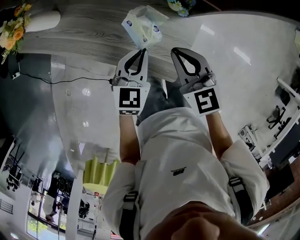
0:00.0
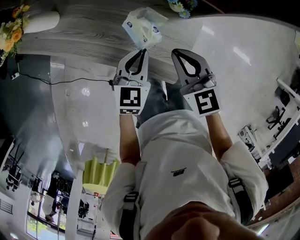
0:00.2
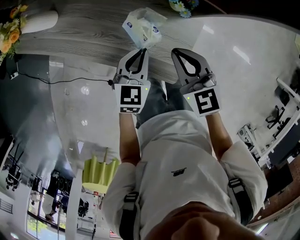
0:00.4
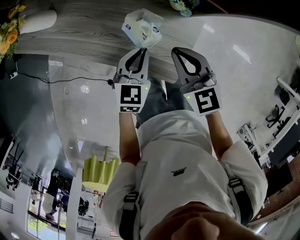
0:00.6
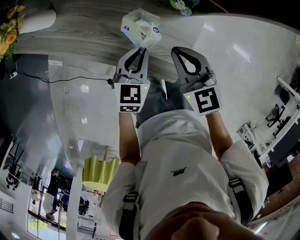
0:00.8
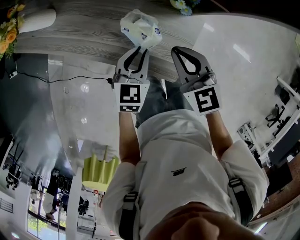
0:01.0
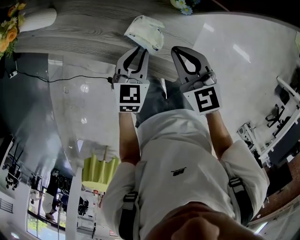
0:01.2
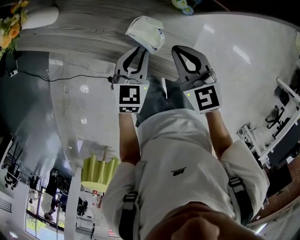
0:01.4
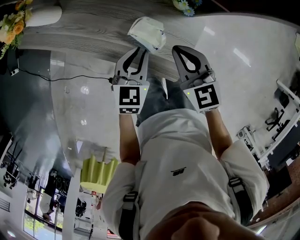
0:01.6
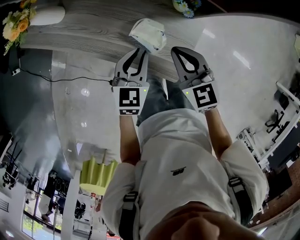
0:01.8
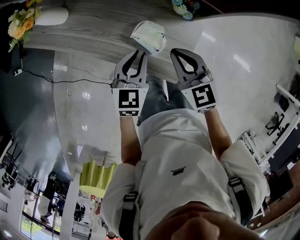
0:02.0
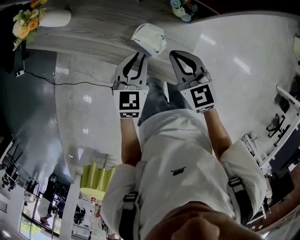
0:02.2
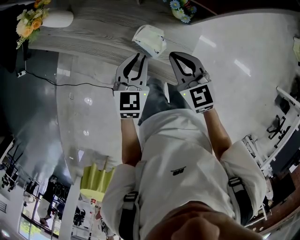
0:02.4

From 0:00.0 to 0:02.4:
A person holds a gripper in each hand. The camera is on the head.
From 0:00.0 to 0:01.2: There are only small adjustments of the grippers.
From 0:01.2 to 0:02.4: The left gripper goes roughly 5 cm upward.

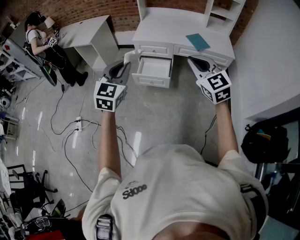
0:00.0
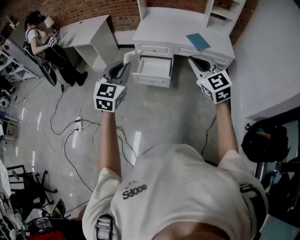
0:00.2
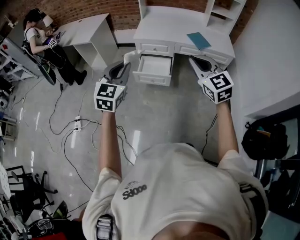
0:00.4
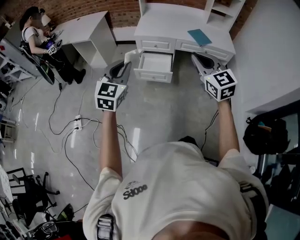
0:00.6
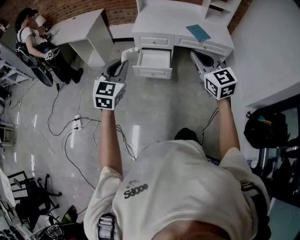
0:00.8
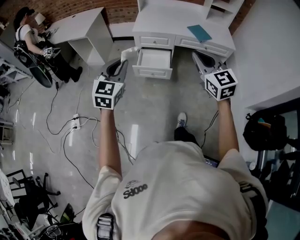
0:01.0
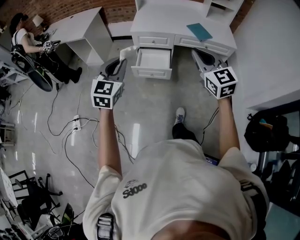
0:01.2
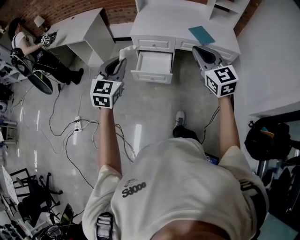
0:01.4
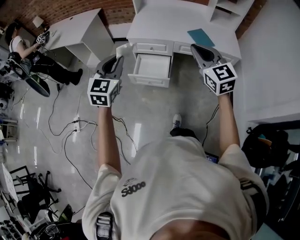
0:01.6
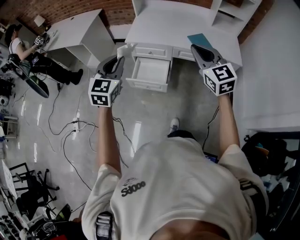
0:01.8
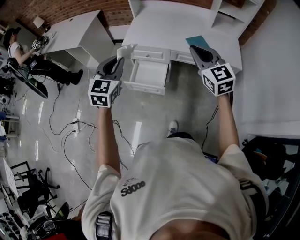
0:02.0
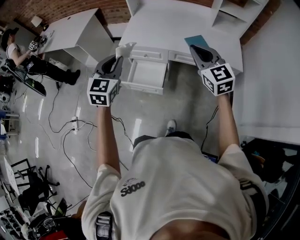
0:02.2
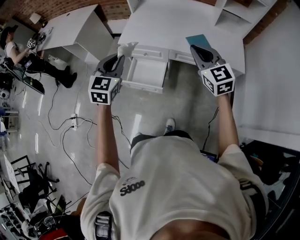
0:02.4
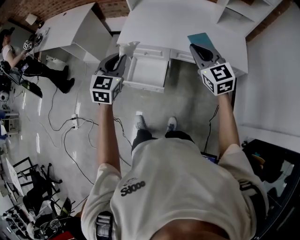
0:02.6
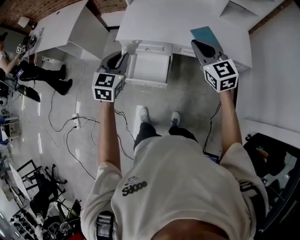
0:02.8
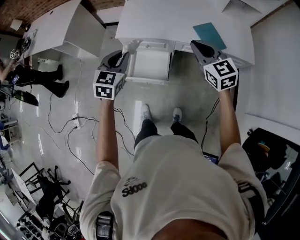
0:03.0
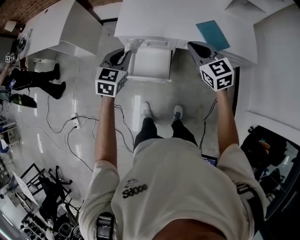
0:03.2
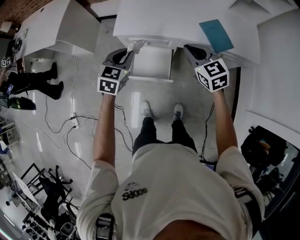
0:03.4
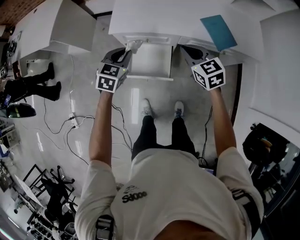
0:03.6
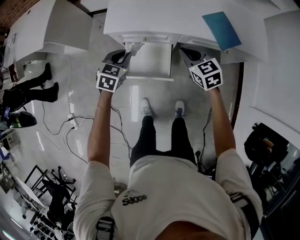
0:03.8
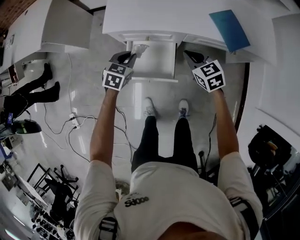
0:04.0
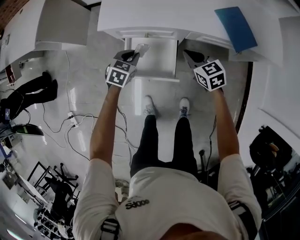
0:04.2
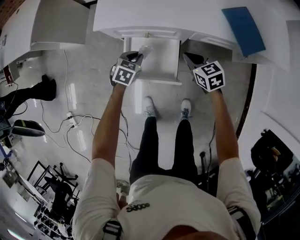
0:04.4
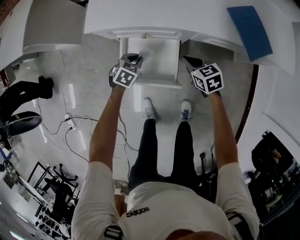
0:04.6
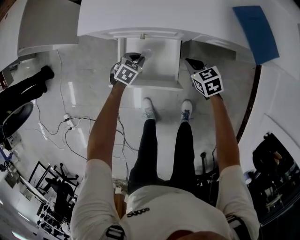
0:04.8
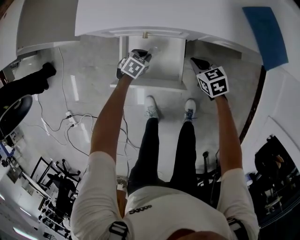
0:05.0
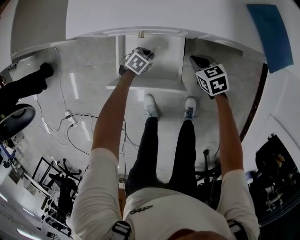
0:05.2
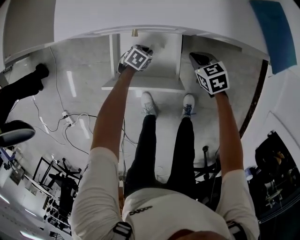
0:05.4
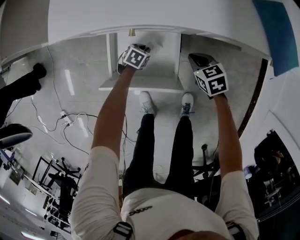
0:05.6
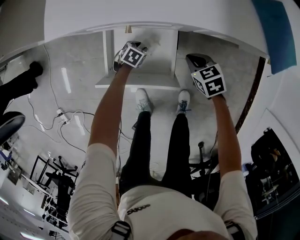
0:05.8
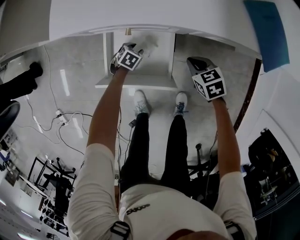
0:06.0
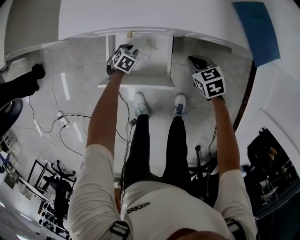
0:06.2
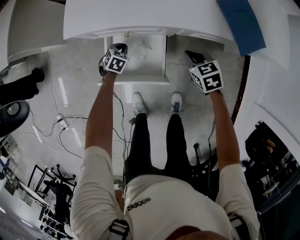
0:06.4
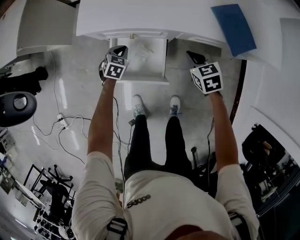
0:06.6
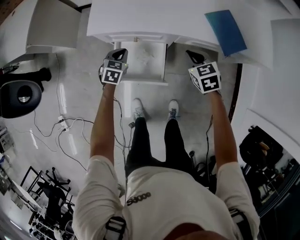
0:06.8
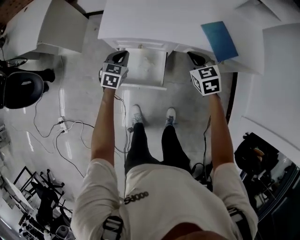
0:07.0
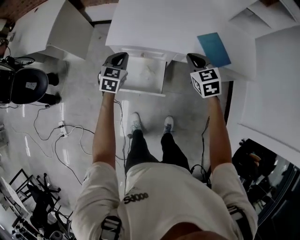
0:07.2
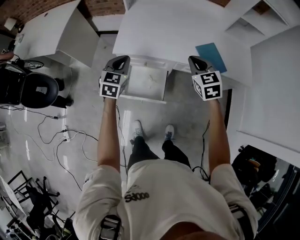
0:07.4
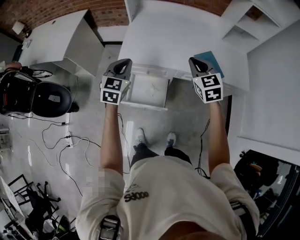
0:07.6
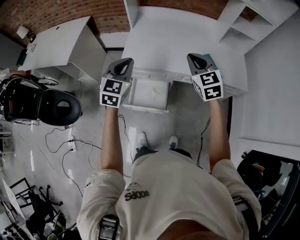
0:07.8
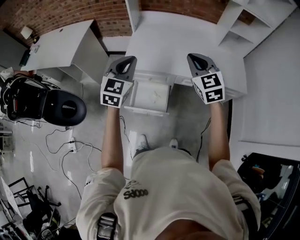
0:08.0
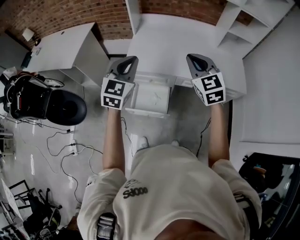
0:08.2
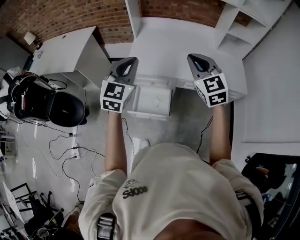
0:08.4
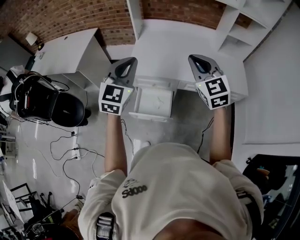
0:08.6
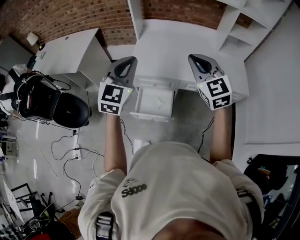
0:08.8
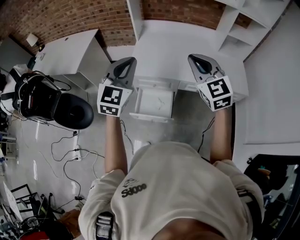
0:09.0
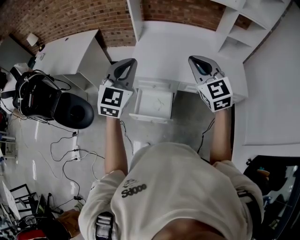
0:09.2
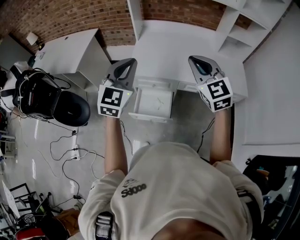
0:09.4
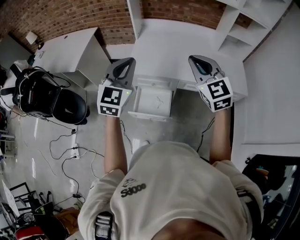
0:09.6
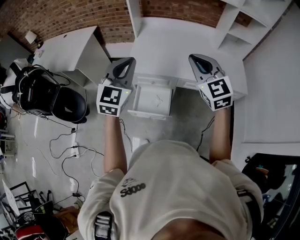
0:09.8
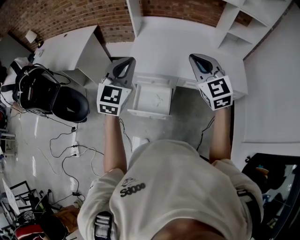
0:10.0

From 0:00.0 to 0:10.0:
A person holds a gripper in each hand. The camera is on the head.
From 0:00.0 to 0:01.4: The two grippers go some 10 cm forward.
From 0:01.4 to 0:02.8: The right gripper heads forward, covering approximately 30 cm; the left gripper travels forward and to the right by about 30 cm.
From 0:02.8 to 0:04.2: The grippers both shift downward by approximately 40 cm. The right gripper swivels approximately 30 degrees; the left gripper swivels roughly 30 degrees.
From 0:04.2 to 0:05.8: Both grippers travel together downward, approximately 30 cm. The left gripper changes its angle by approximately 20 degrees, and opens; the right gripper turns by approximately 20 degrees.
From 0:05.8 to 0:07.2: The grippers both shift upward by some 50 cm. The right gripper swivels approximately 30 degrees. The left gripper tilts its fingers roughly 40 degrees upward, and closes.
From 0:07.2 to 0:08.6: Both grippers move upward, roughly 30 cm. The left gripper rotates about 30 degrees. The right gripper changes its angle by approximately 30 degrees.
From 0:08.6 to 0:10.0: There are only small adjustments of the grippers.

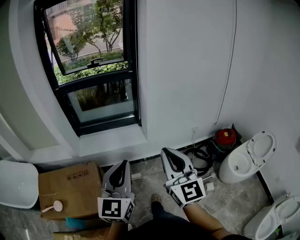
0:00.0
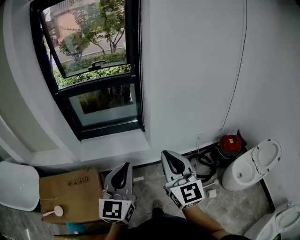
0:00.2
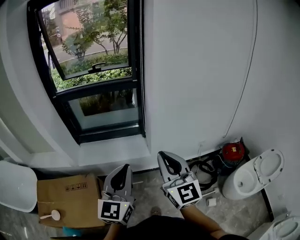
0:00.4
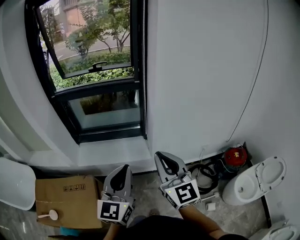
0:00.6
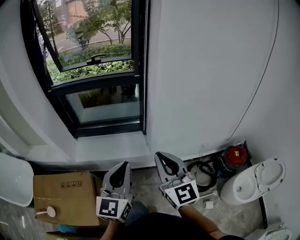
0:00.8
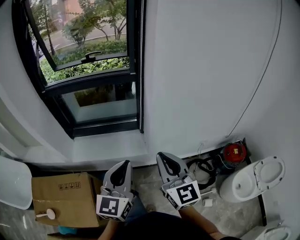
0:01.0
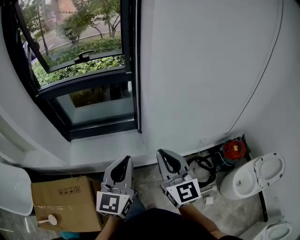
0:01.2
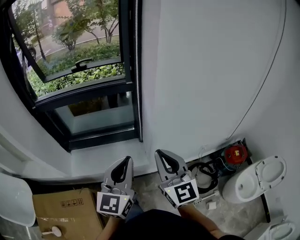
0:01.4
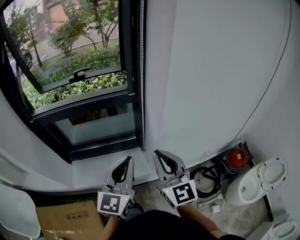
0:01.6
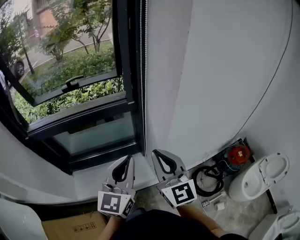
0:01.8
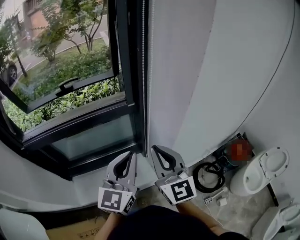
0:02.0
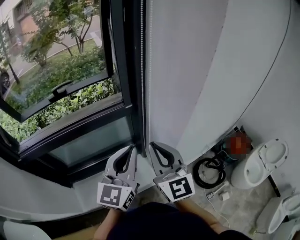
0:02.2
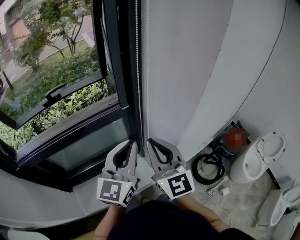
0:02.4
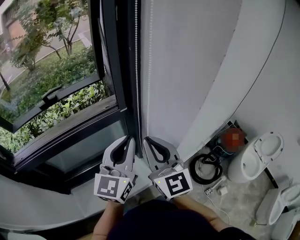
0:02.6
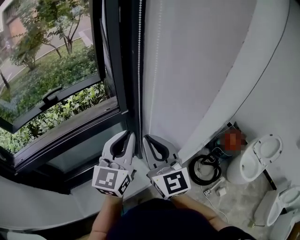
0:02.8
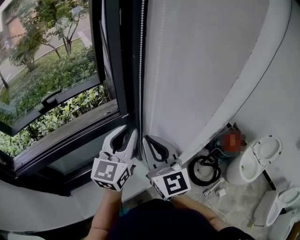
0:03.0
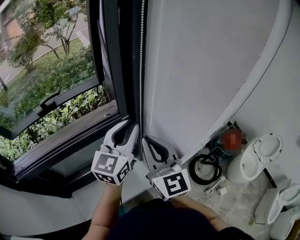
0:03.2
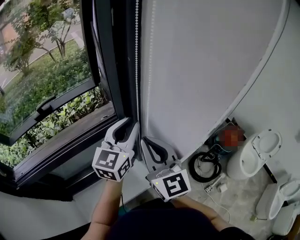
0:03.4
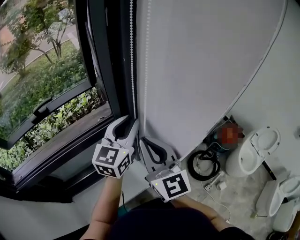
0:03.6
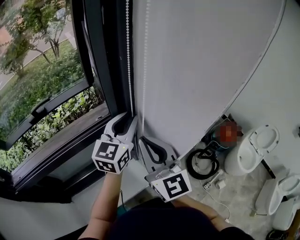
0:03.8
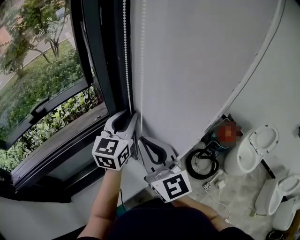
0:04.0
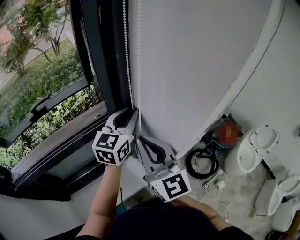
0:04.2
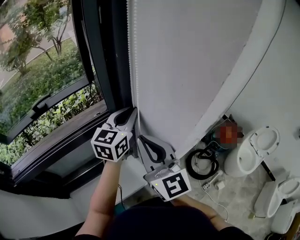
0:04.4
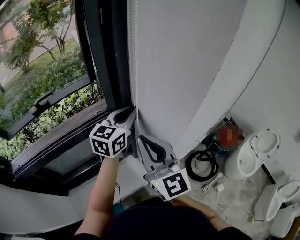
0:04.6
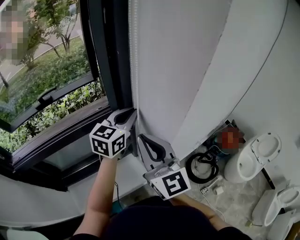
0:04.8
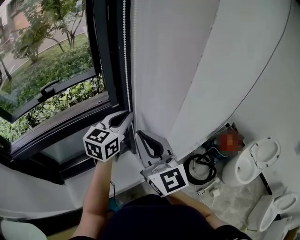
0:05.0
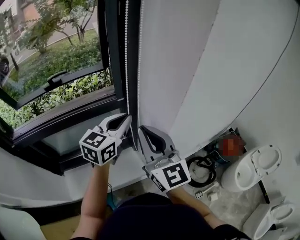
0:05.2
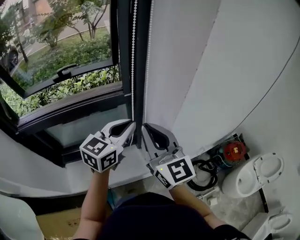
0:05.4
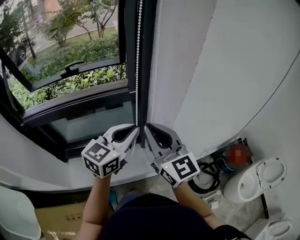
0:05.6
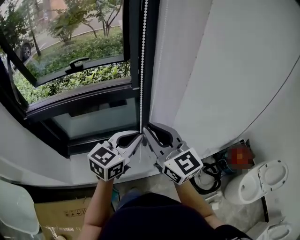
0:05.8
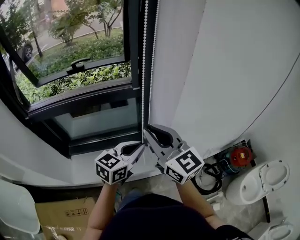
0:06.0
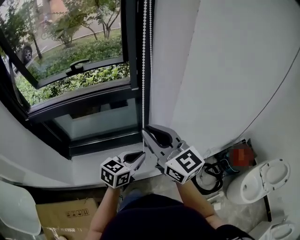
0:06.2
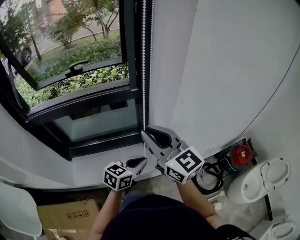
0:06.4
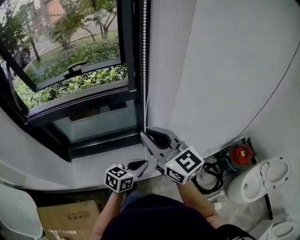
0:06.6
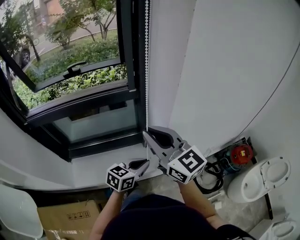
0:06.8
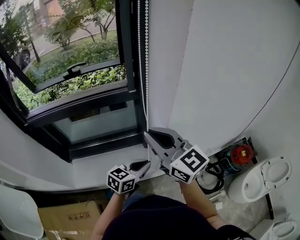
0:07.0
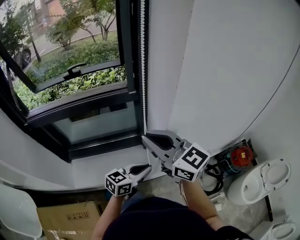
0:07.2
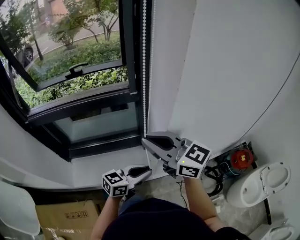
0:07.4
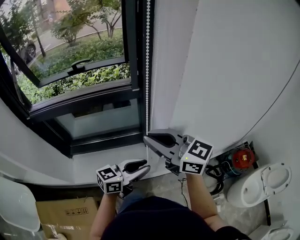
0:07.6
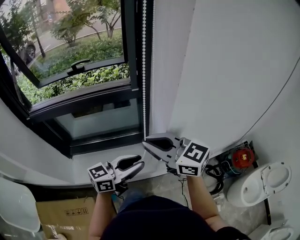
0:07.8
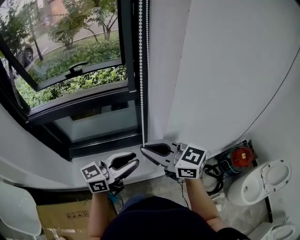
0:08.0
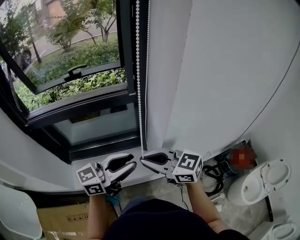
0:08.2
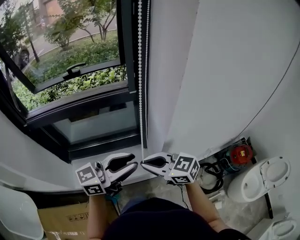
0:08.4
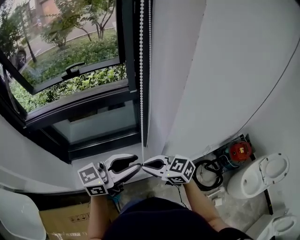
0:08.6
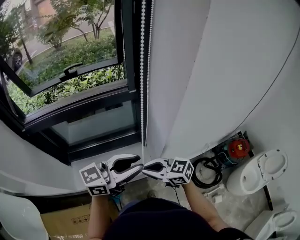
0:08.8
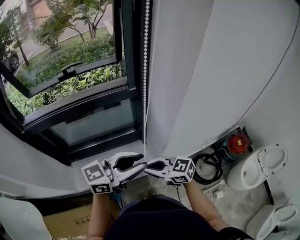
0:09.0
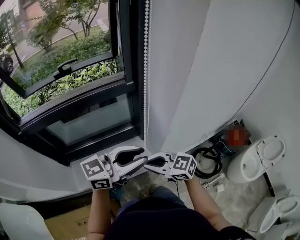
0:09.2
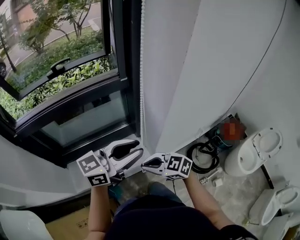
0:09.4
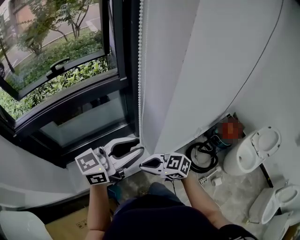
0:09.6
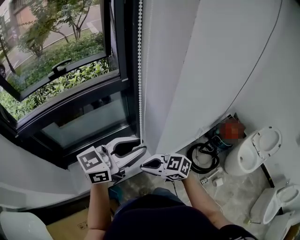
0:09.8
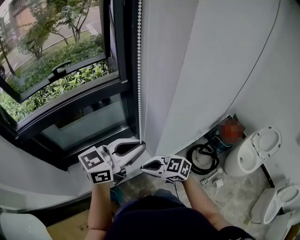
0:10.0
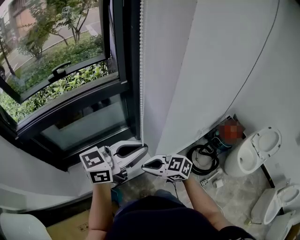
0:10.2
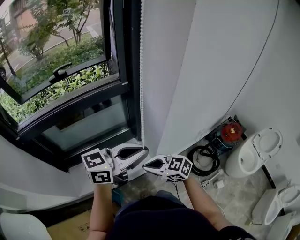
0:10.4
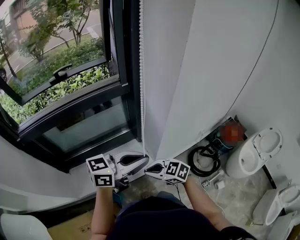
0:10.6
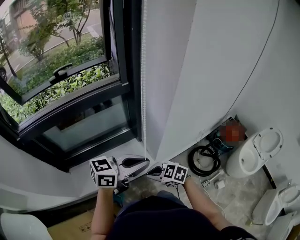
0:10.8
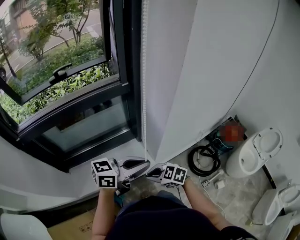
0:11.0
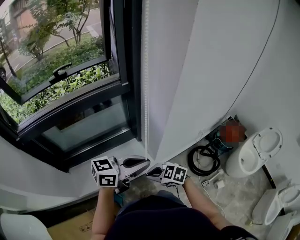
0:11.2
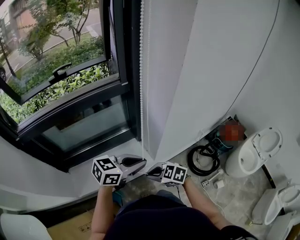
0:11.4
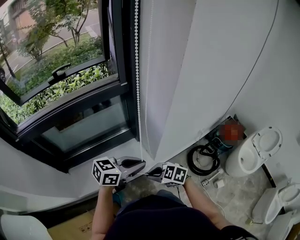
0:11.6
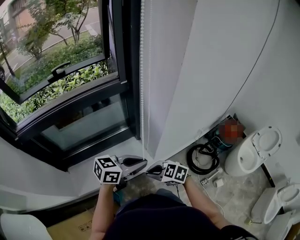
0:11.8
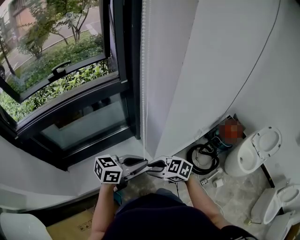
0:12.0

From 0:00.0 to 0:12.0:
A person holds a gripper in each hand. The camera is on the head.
From 0:00.0 to 0:01.6: Both grippers are carried forward, roughly 40 cm.
From 0:01.6 to 0:03.0: The left gripper goes about 25 cm forward, and swivels some 20 degrees. The right gripper shifts about 20 cm forward and to the left.
From 0:03.0 to 0:04.4: The left gripper is displaced forward by some 10 cm.
From 0:04.4 to 0:06.0: The left gripper is displaced backward and downward by roughly 25 cm, while the right gripper shifts approximately 10 cm backward, and rotates some 30 degrees.
From 0:06.0 to 0:07.6: The left gripper travels backward by roughly 5 cm, and swivels some 20 degrees. The right gripper swivels approximately 20 degrees.
From 0:07.6 to 0:09.0: The left gripper shifts about 10 cm upward. The right gripper is displaced downward by roughly 20 cm, and changes its angle by some 20 degrees.
From 0:09.0 to 0:10.4: The left gripper closes. The right gripper goes approximately 5 cm downward.
From 0:10.4 to 0:12.0: The left gripper moves downward, approximately 15 cm.
